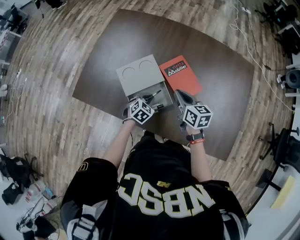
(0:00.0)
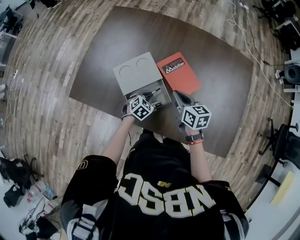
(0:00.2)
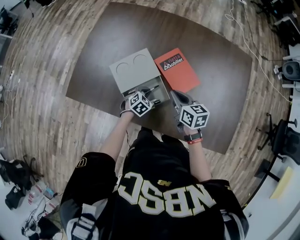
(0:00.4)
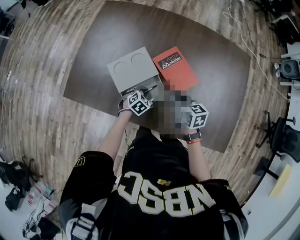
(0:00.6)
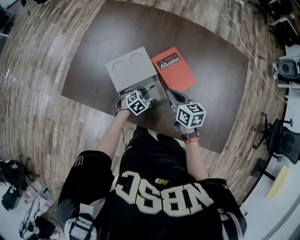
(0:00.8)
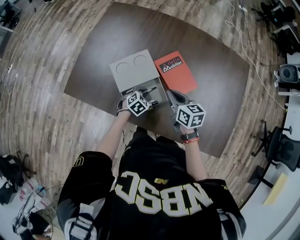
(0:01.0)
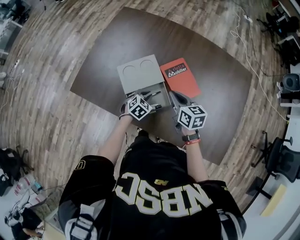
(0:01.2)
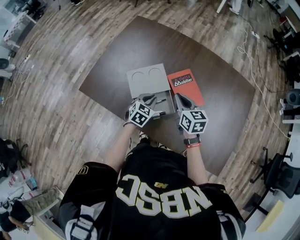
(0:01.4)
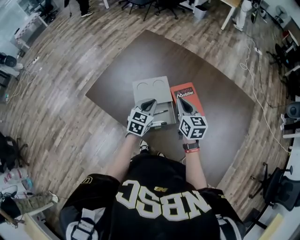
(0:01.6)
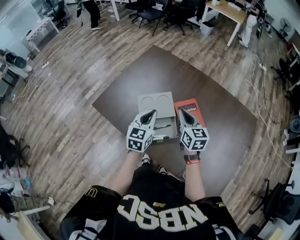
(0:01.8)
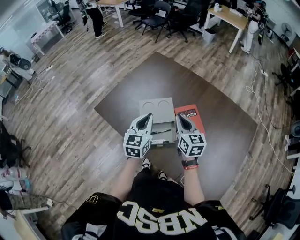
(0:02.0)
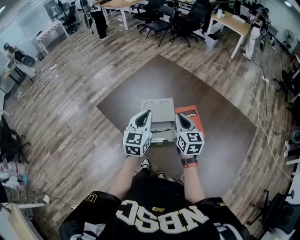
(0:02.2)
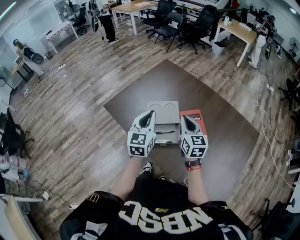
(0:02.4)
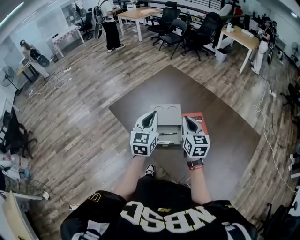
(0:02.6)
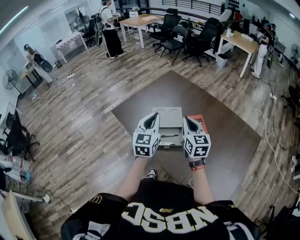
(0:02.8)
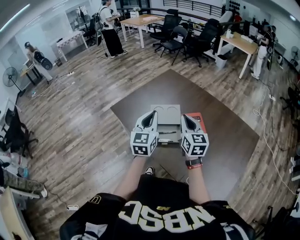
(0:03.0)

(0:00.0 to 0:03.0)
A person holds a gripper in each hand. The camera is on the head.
0:00.0 - 0:01.6: The right gripper is displaced upward by some 5 cm. The left gripper travels upward by approximately 15 cm, and changes its angle by about 40 degrees.
0:01.6 - 0:03.0: The right gripper is displaced upward and backward by some 15 cm, while the left gripper shifts approximately 20 cm upward and backward, and swivels roughly 40 degrees.

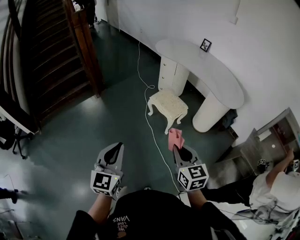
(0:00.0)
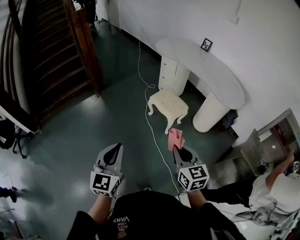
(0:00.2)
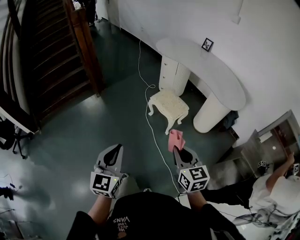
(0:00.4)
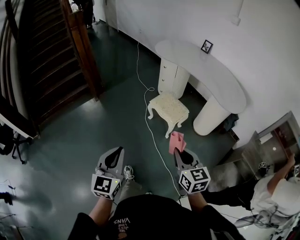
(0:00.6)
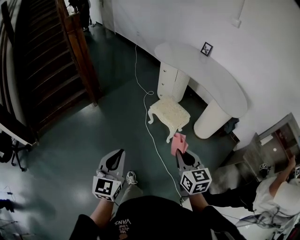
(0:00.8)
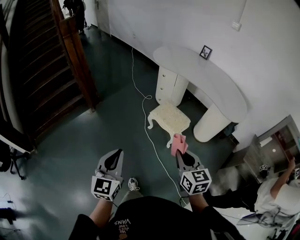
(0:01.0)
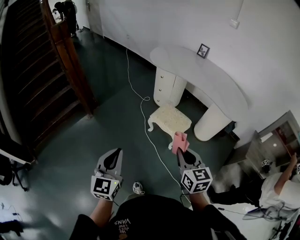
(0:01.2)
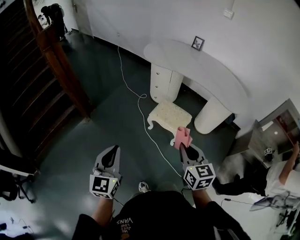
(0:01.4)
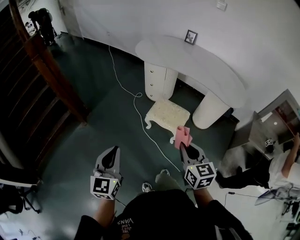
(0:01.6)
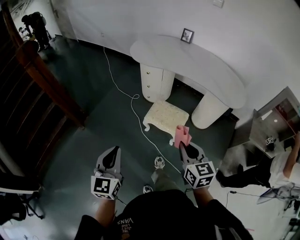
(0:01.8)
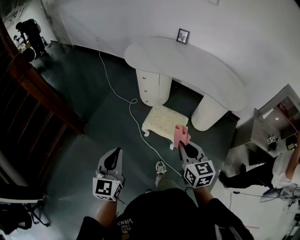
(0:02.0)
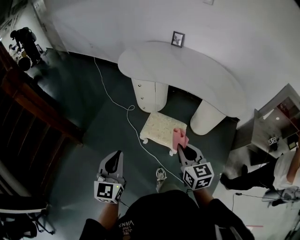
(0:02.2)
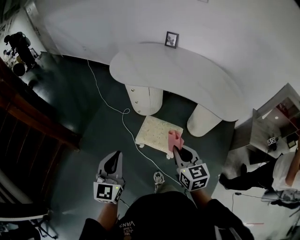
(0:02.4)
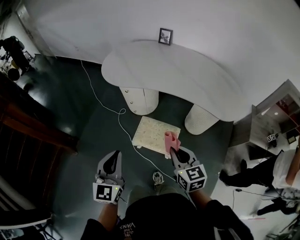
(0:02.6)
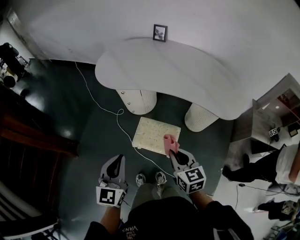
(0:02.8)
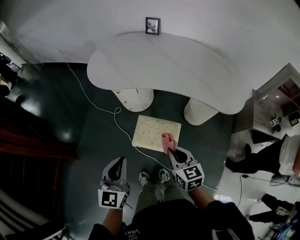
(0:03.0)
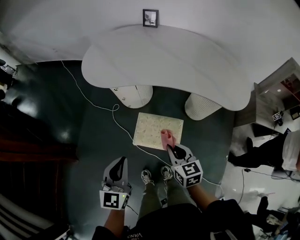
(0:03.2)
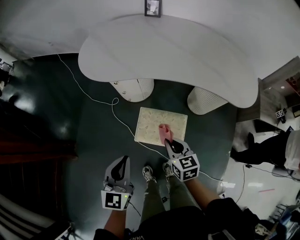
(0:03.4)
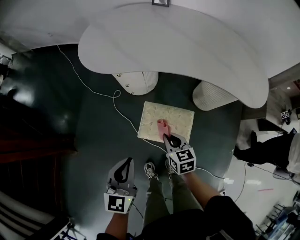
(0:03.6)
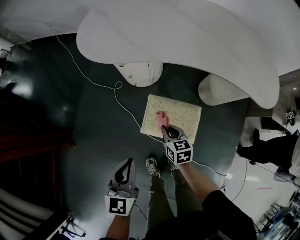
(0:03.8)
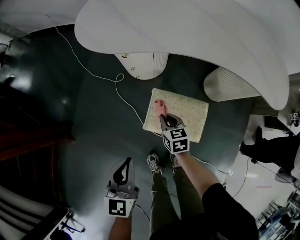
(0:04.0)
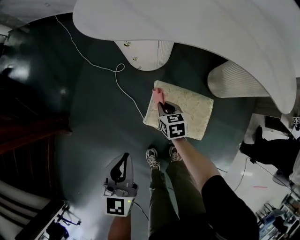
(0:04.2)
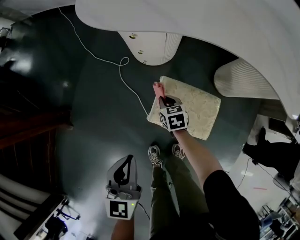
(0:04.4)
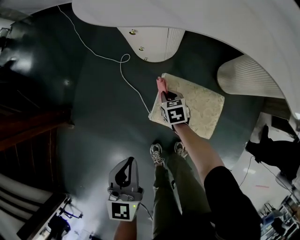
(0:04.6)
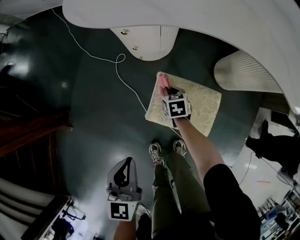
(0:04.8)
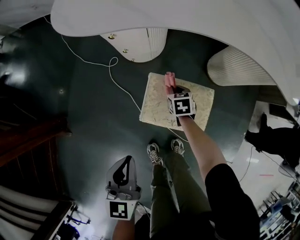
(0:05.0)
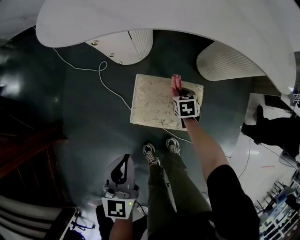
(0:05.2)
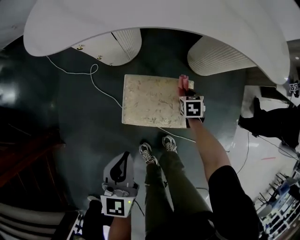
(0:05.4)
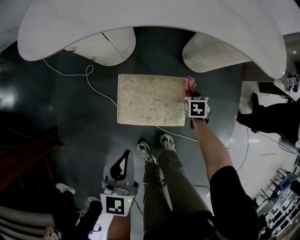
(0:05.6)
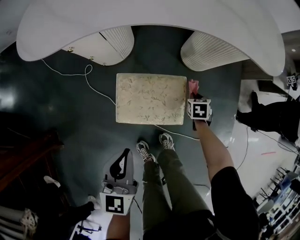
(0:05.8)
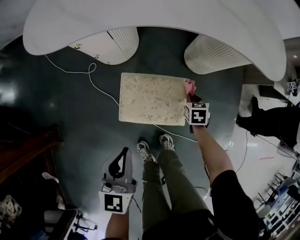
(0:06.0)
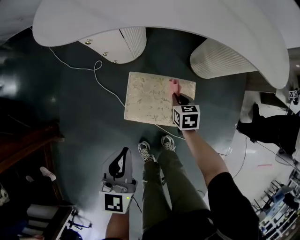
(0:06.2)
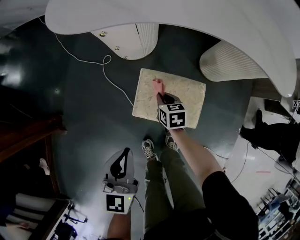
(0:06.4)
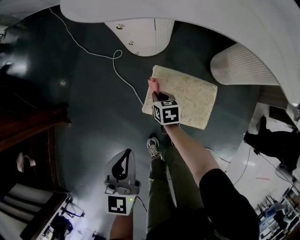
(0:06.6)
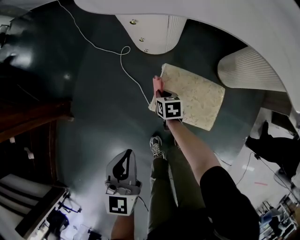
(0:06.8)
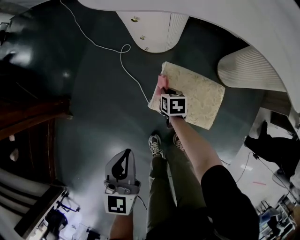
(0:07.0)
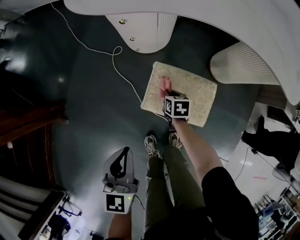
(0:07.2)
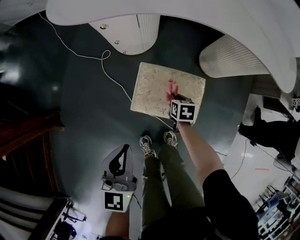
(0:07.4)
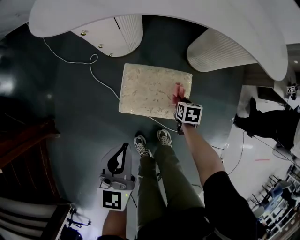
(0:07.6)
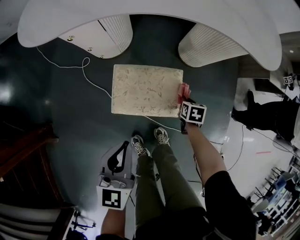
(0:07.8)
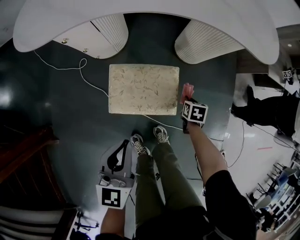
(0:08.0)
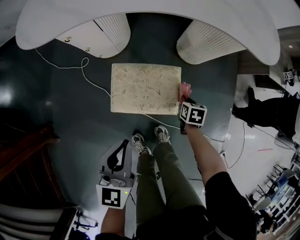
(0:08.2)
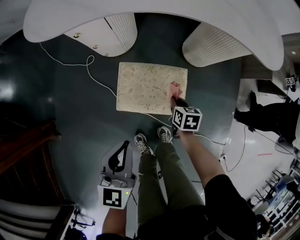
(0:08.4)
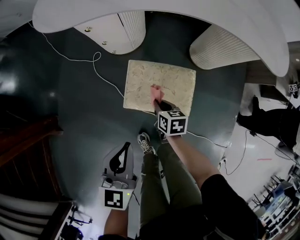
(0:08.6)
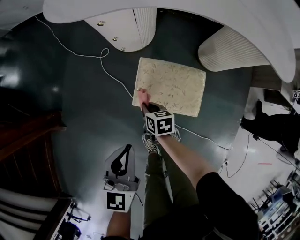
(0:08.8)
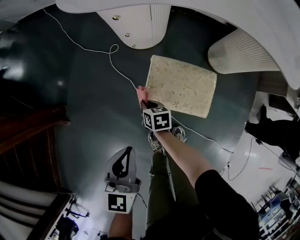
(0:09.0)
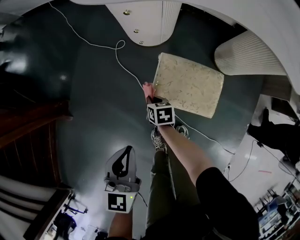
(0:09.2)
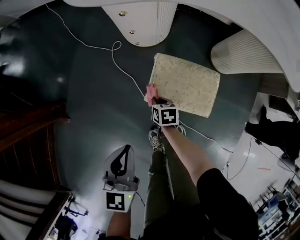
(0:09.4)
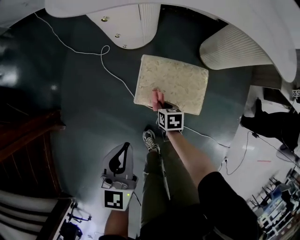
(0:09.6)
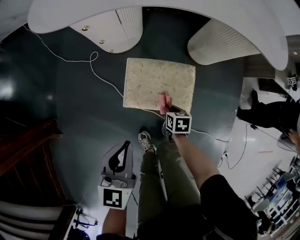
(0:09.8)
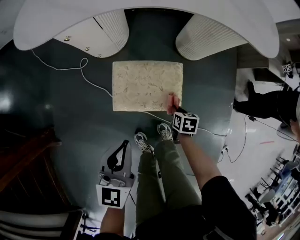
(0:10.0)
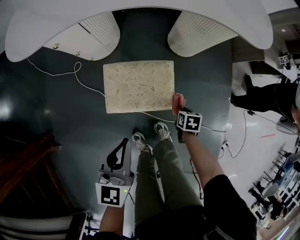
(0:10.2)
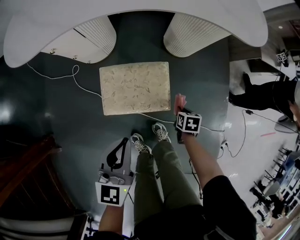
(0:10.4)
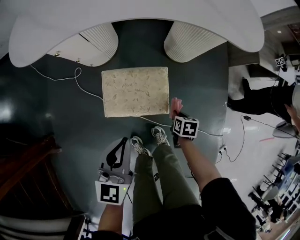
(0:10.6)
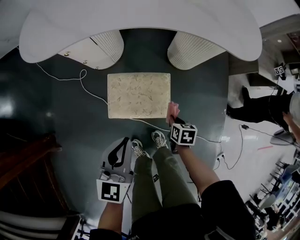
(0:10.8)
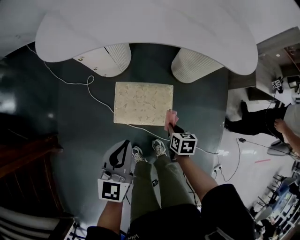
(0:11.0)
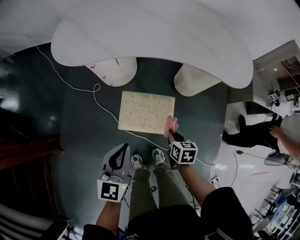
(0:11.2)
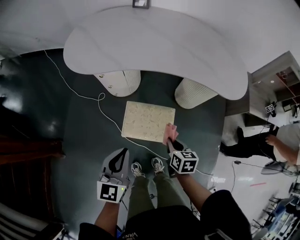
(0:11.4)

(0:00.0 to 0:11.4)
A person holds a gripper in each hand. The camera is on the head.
0:00.0 - 0:01.4: The right gripper is displaced forward by some 25 cm. Meanwhile the left gripper is displaced forward and to the left by roughly 30 cm.
0:01.4 - 0:02.8: Both grippers travel together forward, roughly 35 cm.
0:02.8 - 0:04.2: The left gripper shifts approximately 25 cm downward, forward and to the left. The right gripper heads downward, forward and to the left, covering roughly 50 cm, and turns by roughly 20 degrees.
0:04.2 - 0:05.6: The right gripper shifts by roughly 35 cm, and changes its angle by some 30 degrees. The left gripper changes place by some 15 cm.
0:05.6 - 0:07.2: The left gripper moves about 10 cm, while the right gripper moves some 25 cm, and rotates about 20 degrees.
0:08.6 - 0:10.0: The right gripper moves about 15 cm, and turns by roughly 20 degrees.
0:10.0 - 0:11.4: The right gripper goes some 30 cm upward, and turns by approximately 20 degrees. Meanwhile the left gripper goes roughly 15 cm upward.

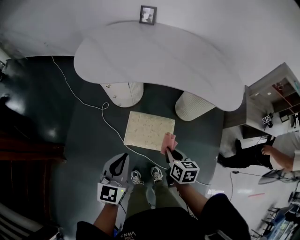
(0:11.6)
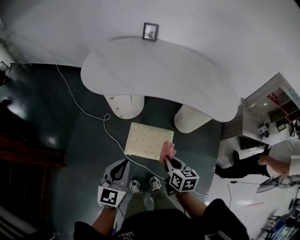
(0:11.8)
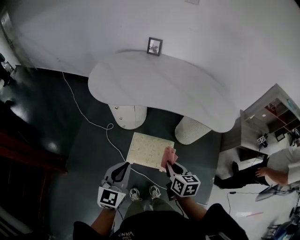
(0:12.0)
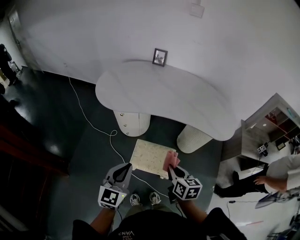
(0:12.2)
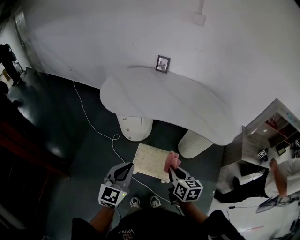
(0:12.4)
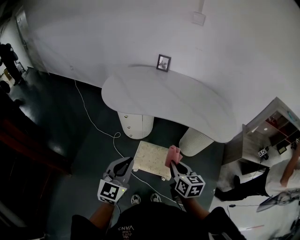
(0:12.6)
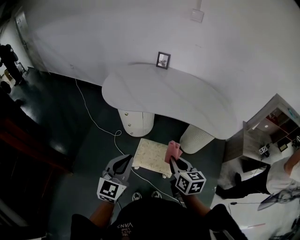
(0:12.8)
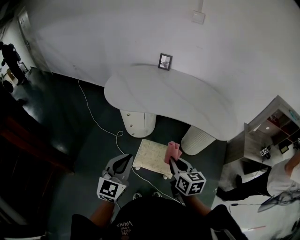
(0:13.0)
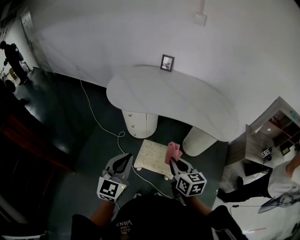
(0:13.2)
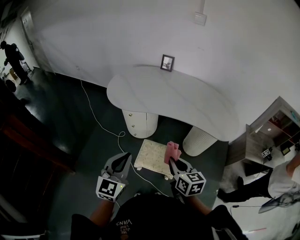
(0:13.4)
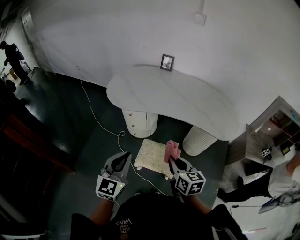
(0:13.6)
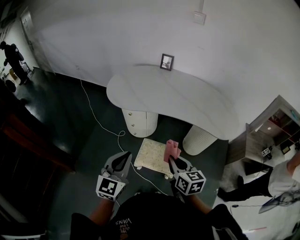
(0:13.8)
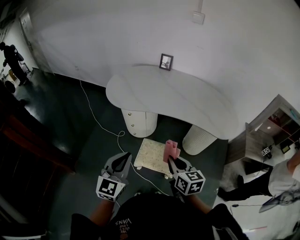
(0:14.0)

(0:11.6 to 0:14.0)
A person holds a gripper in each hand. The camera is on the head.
0:11.6 - 0:12.8: The grippers both shift upward by some 15 cm. The right gripper changes its angle by roughly 20 degrees.
0:12.8 - 0:14.0: The grippers stay close to where they were, moving slightly.

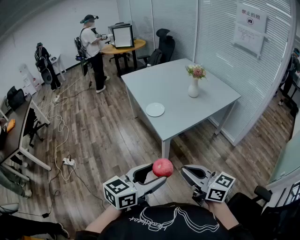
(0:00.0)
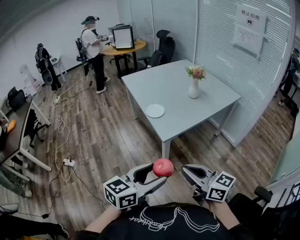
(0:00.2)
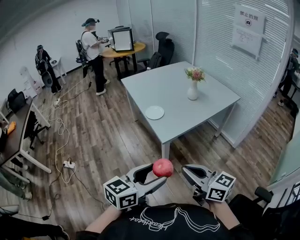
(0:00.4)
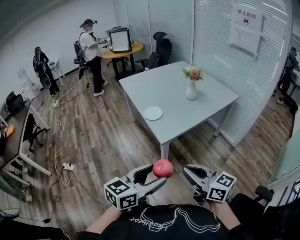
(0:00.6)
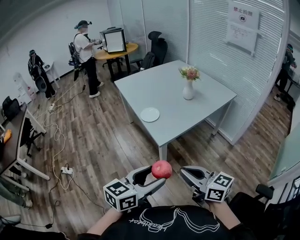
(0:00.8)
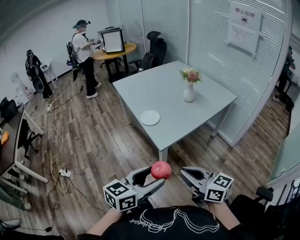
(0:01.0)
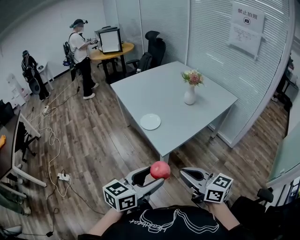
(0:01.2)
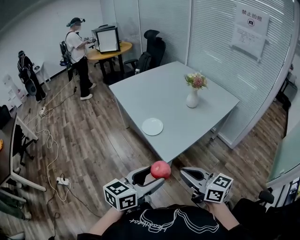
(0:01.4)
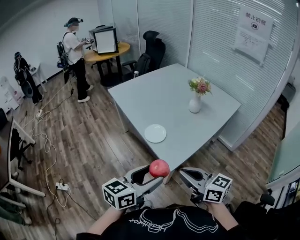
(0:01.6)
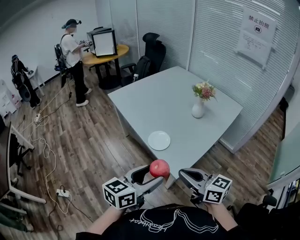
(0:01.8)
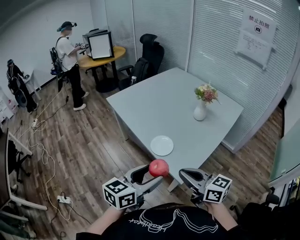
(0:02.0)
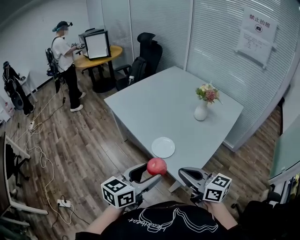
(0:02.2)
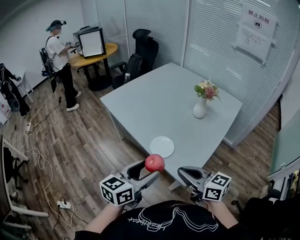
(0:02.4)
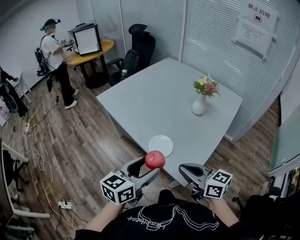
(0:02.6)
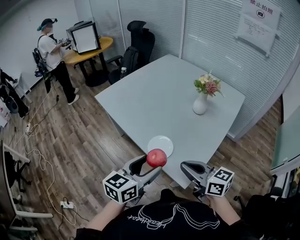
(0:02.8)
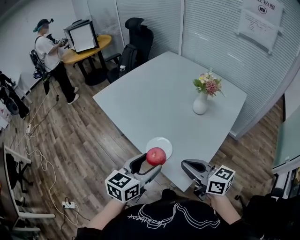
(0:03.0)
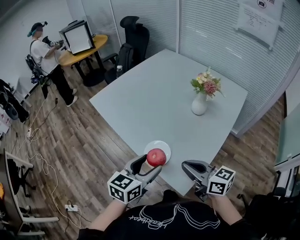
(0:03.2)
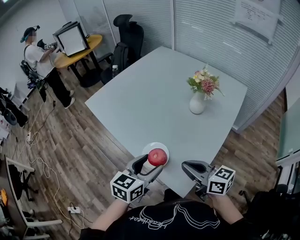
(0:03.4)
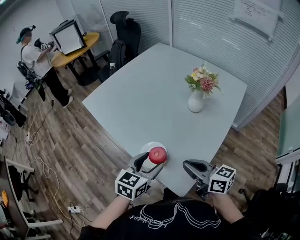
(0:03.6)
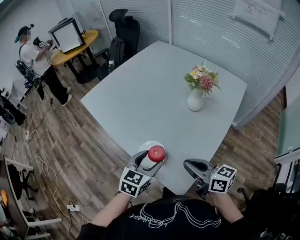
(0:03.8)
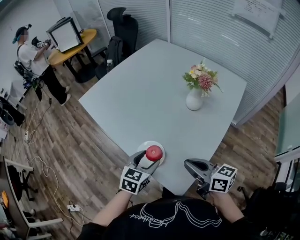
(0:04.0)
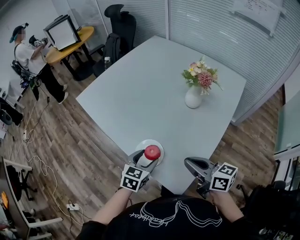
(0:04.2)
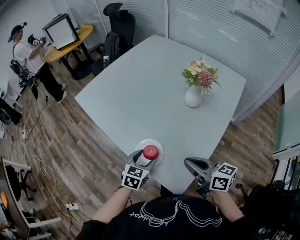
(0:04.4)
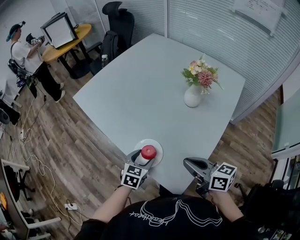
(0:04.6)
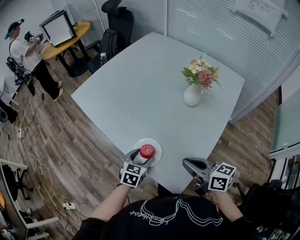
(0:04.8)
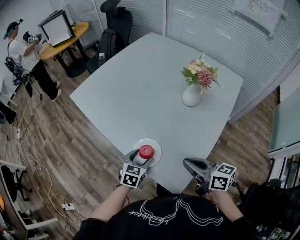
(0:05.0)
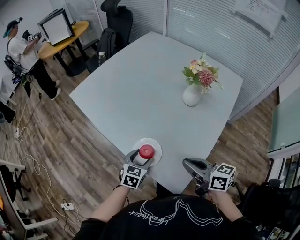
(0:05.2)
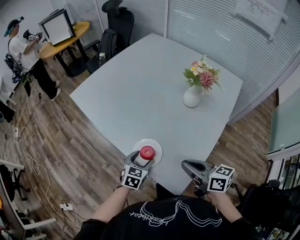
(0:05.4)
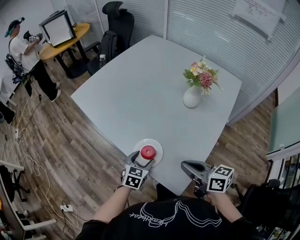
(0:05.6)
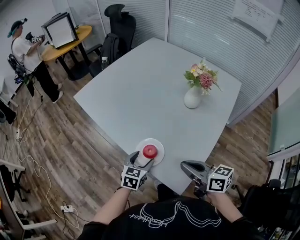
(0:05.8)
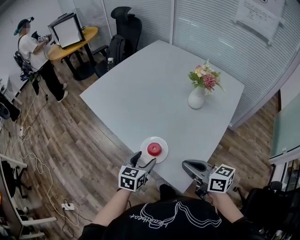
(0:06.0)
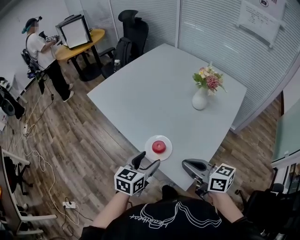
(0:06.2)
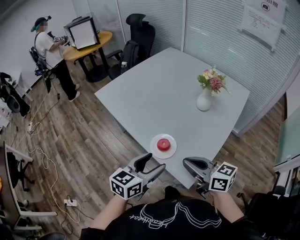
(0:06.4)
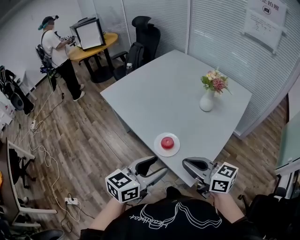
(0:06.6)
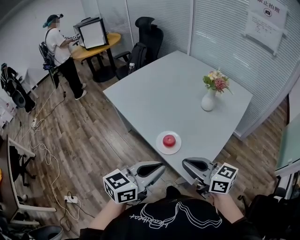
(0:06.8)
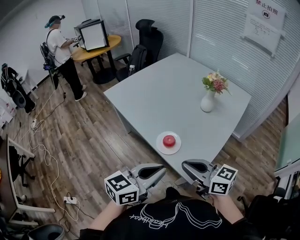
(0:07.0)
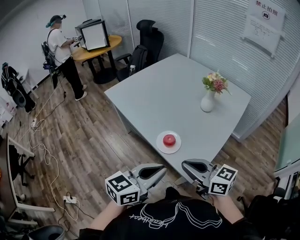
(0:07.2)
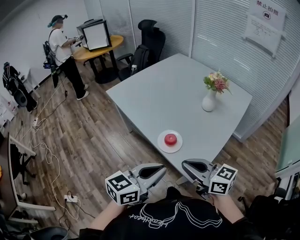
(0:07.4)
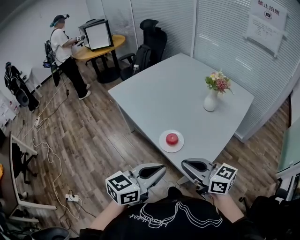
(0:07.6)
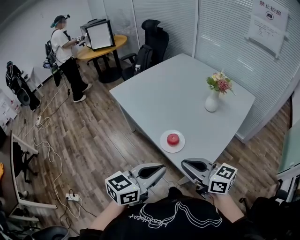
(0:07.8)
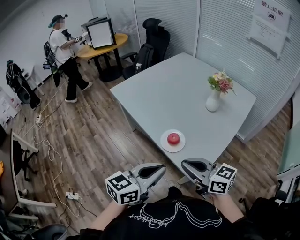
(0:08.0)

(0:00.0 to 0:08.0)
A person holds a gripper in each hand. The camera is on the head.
0:00.0 - 0:01.6: Both grippers travel together forward and to the left, roughly 25 cm.
0:01.6 - 0:03.2: The grippers both shift forward by some 25 cm.
0:03.2 - 0:04.8: The left gripper travels downward and forward by roughly 20 cm, and rotates some 20 degrees. The right gripper goes approximately 10 cm downward and to the right.
0:04.8 - 0:06.4: The right gripper is displaced to the left, backward and upward by some 10 cm. The left gripper goes some 20 cm upward and backward, and swivels roughly 30 degrees.
0:06.4 - 0:08.0: The right gripper goes about 10 cm backward and to the left. The left gripper shifts roughly 10 cm backward and upward, and closes up.
